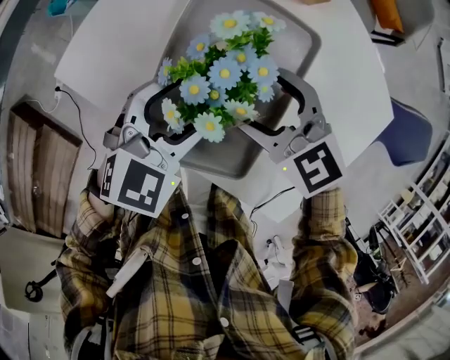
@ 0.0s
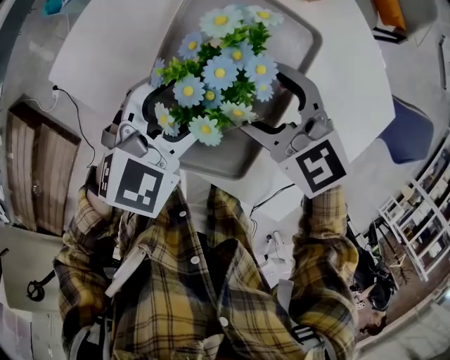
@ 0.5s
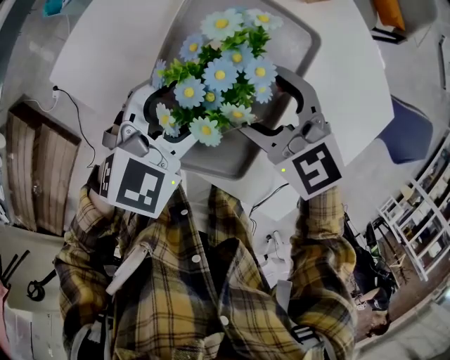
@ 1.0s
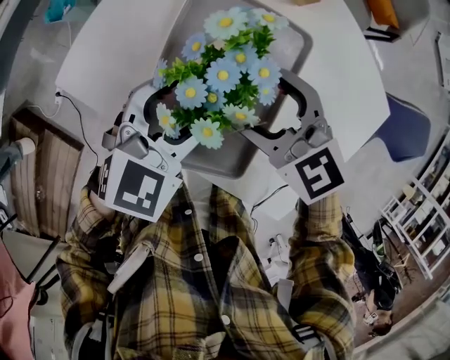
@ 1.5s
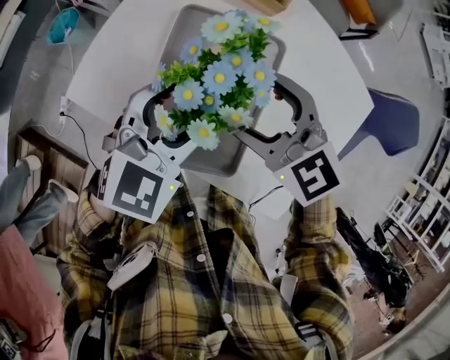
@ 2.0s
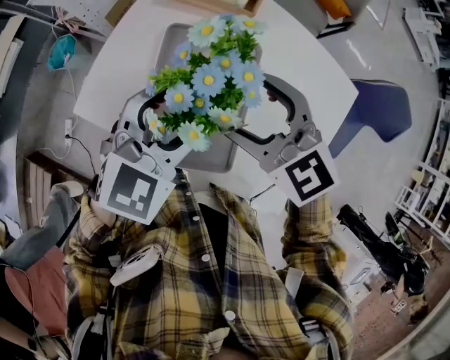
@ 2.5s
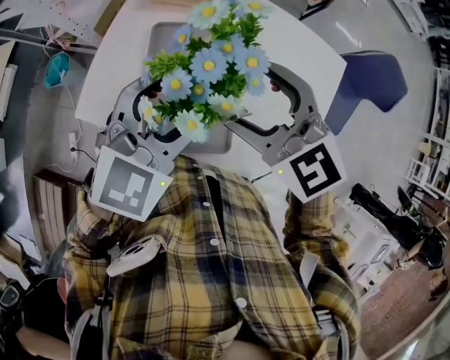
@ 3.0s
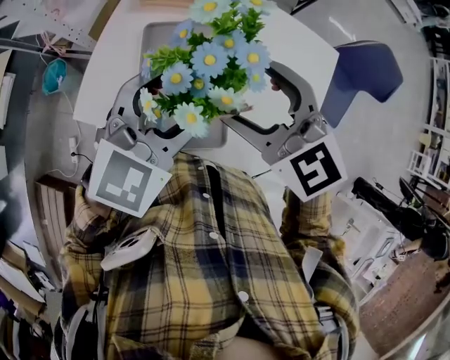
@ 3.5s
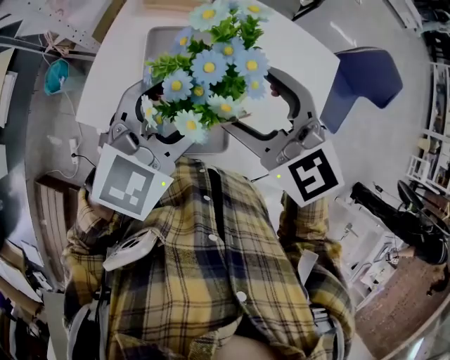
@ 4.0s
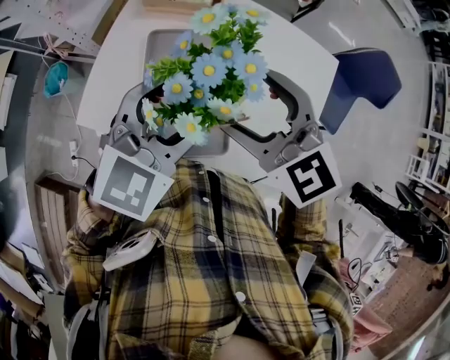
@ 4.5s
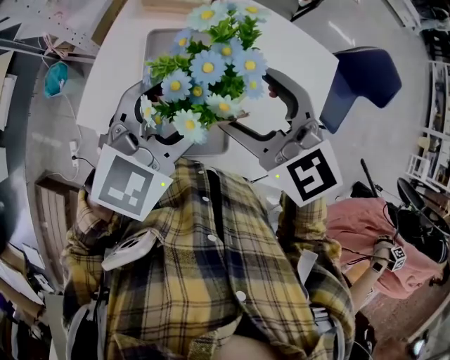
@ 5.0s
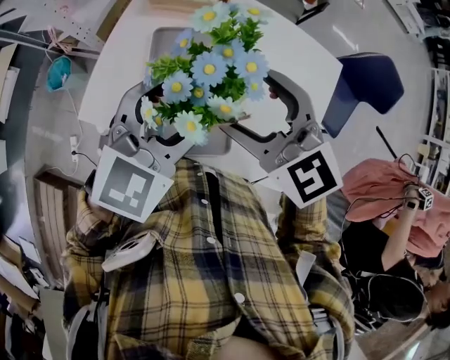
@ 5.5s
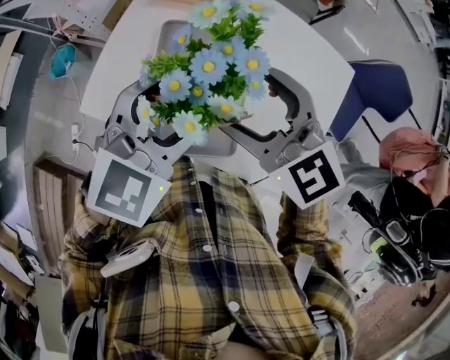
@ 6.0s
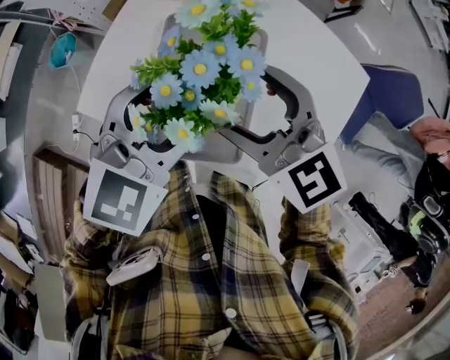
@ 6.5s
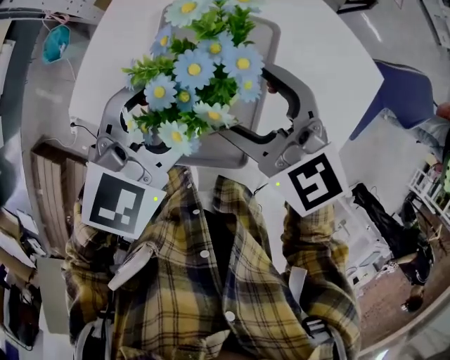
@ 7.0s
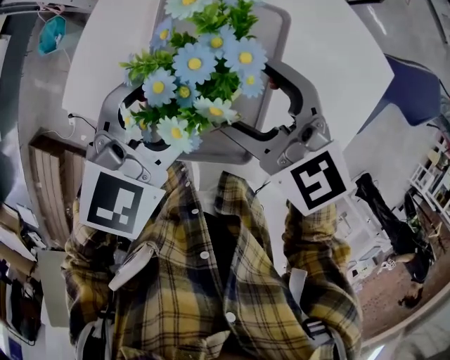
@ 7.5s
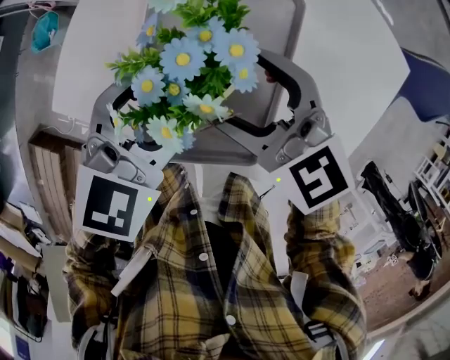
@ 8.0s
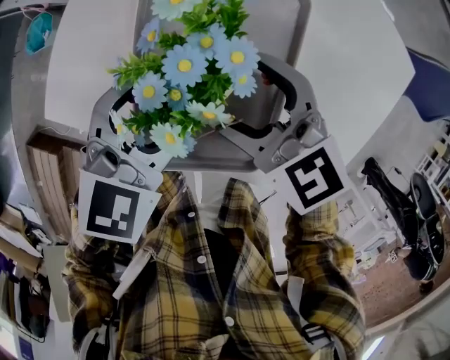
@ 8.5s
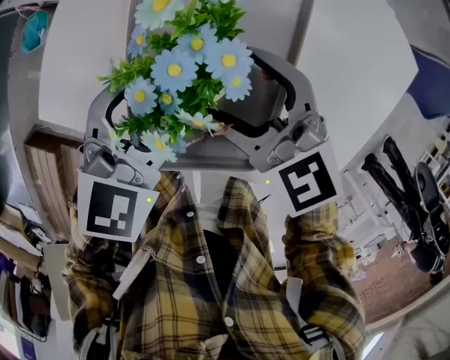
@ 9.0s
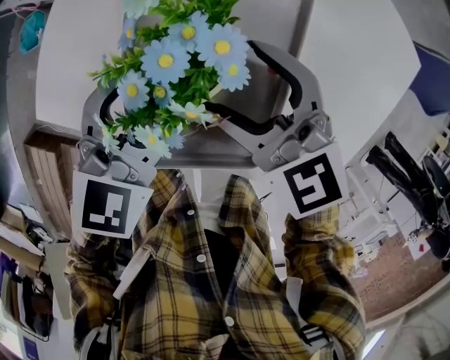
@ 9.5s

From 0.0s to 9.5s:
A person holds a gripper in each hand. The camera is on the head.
From 0.0s to 2.0s: There are only small adjustments of the grippers.
From 2.0s to 4.0s: The grippers stay close to where they were, moving slightly.
From 4.0s to 5.5s: Both grippers stay put.
From 5.5s to 7.5s: There are only small adjustments of the grippers.
From 7.5s to 9.5s: Both grippers stay about where they are.

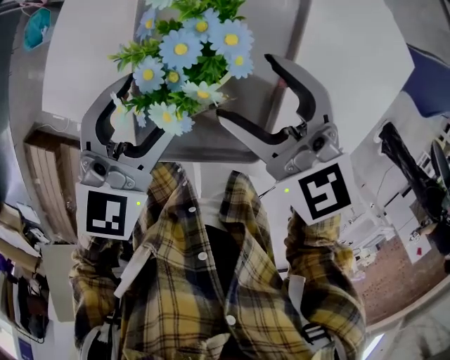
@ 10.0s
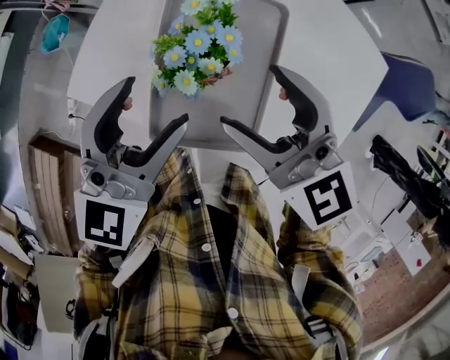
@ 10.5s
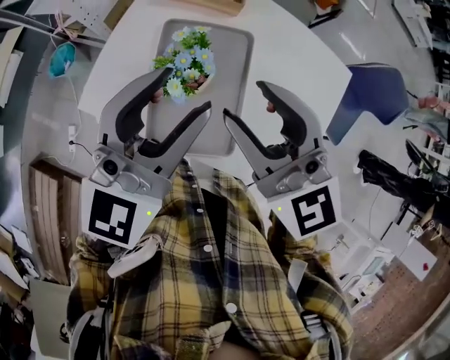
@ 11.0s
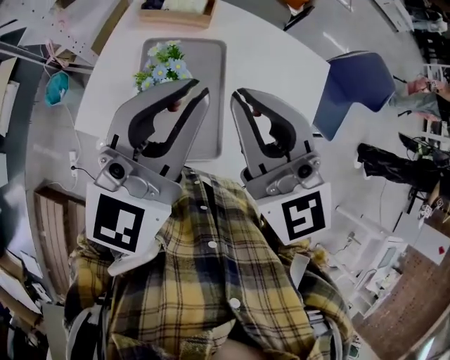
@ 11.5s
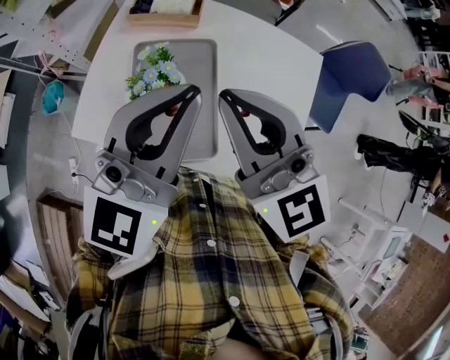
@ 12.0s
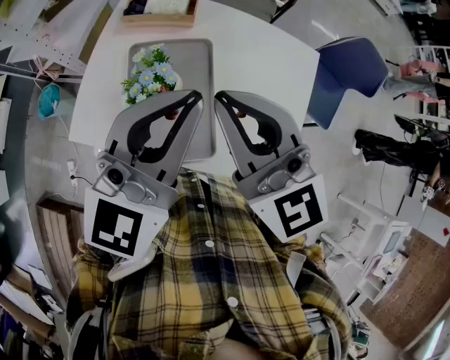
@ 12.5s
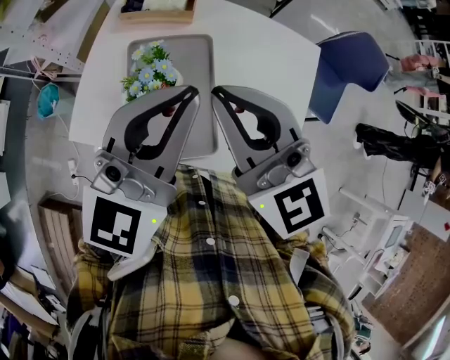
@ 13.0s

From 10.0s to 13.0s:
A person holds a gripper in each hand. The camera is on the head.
From 10.0s to 11.5s: The two grippers go approximately 30 cm upward. The left gripper points its fingers roughly 30 degrees further upward, and closes, while the right gripper tilts its fingers about 30 degrees upward, and closes.
From 11.5s to 13.0s: The grippers stay close to where they were, moving slightly.

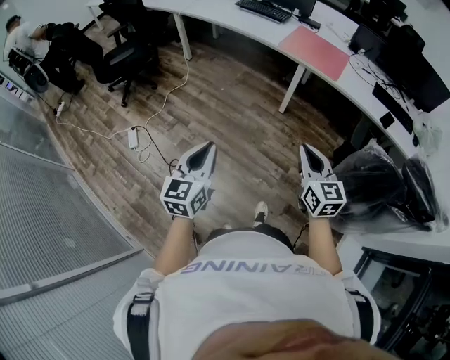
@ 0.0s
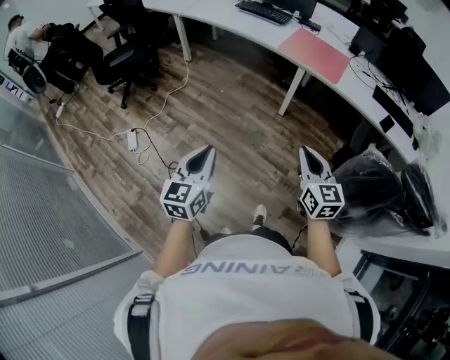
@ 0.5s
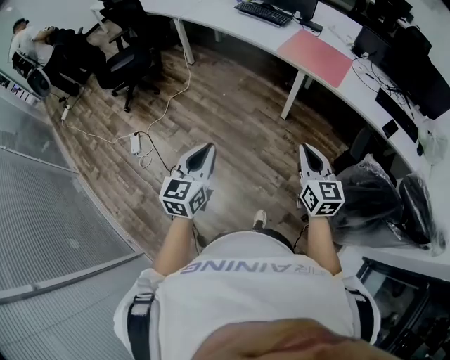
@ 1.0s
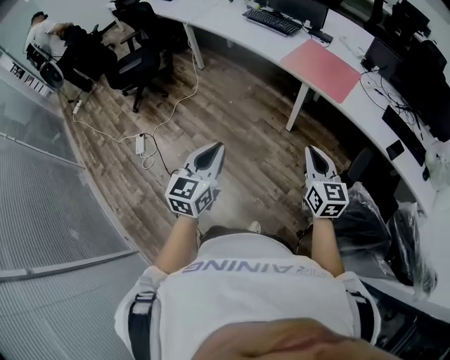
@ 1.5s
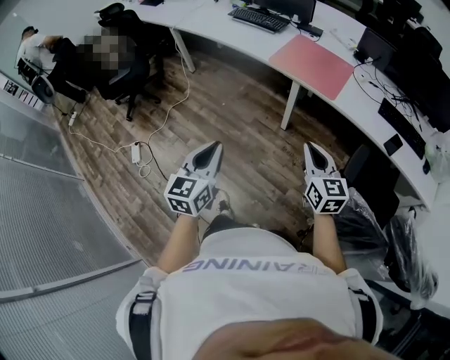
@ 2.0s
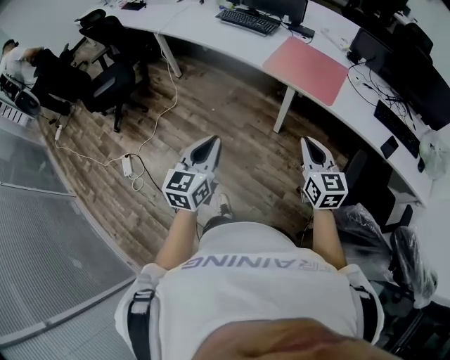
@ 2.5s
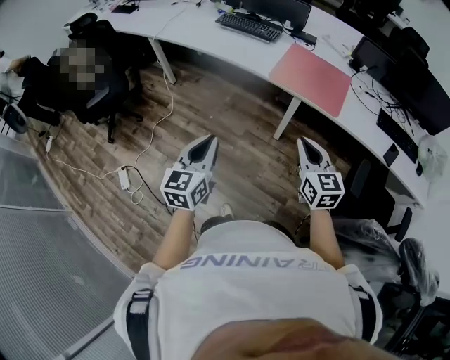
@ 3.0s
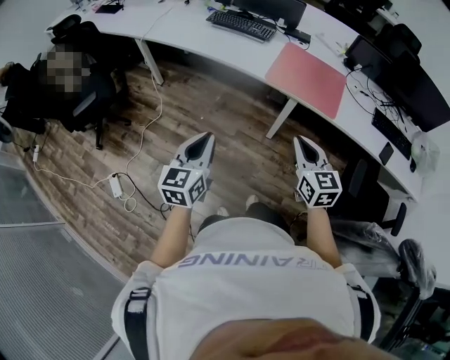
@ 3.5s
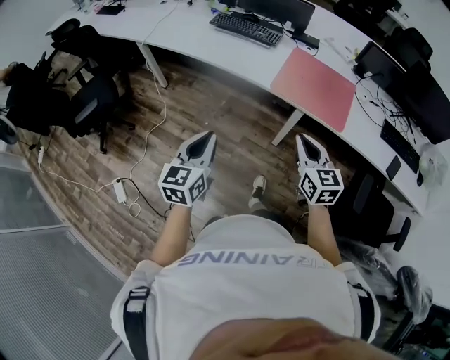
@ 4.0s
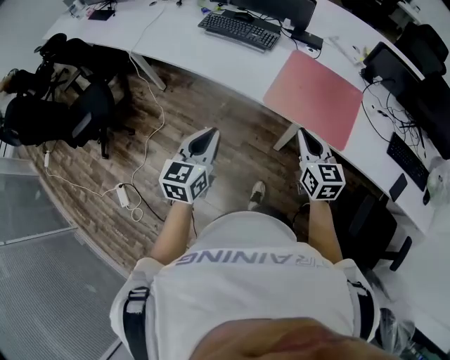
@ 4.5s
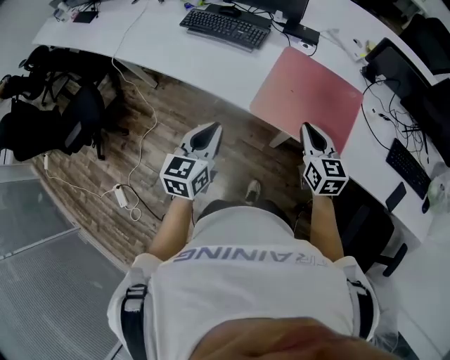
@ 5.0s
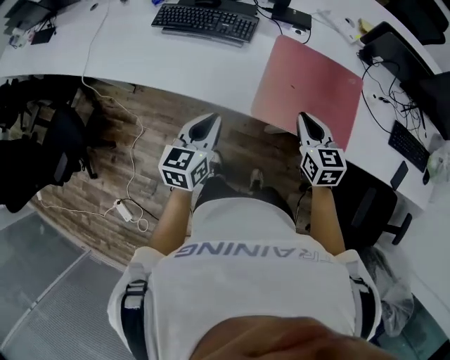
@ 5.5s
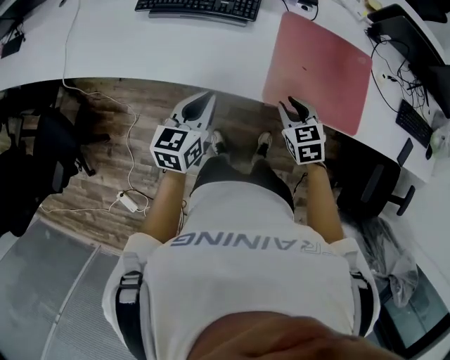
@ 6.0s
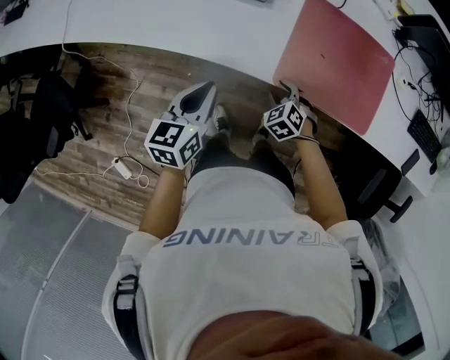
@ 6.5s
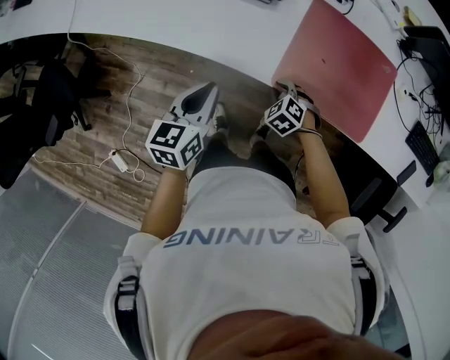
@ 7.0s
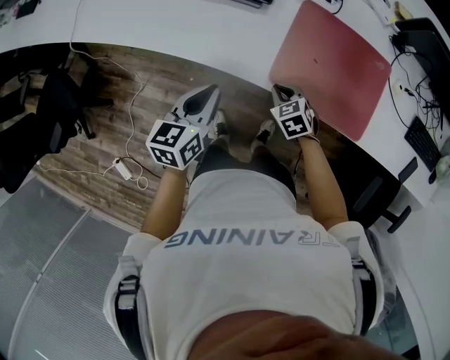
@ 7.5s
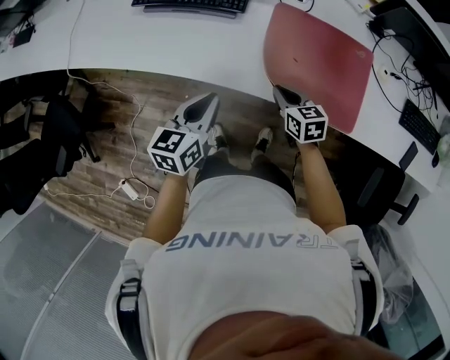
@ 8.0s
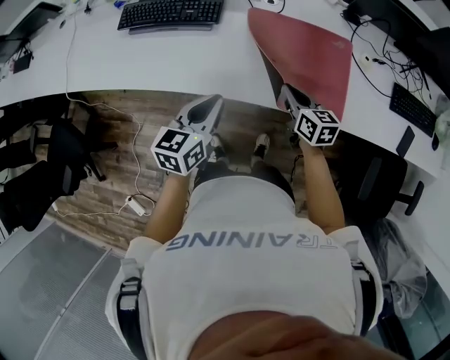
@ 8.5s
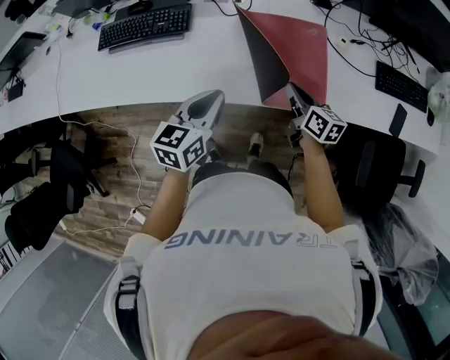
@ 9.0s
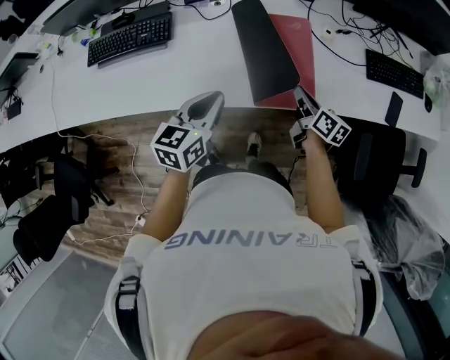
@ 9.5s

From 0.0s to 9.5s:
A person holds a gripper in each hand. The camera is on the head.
From 0.0s to 2.0s: The grippers both shift forward and to the right by approximately 25 cm.
From 2.0s to 4.0s: Both grippers travel together forward and to the left, about 35 cm.
From 4.0s to 5.5s: The two grippers go some 35 cm forward.
From 5.5s to 7.5s: The right gripper heads downward and to the left, covering about 20 cm, turns by roughly 40 degrees, and opens and closes again.
From 7.5s to 9.5s: The right gripper shifts by approximately 35 cm, and twists about 70 degrees clockwise, seen from behind; the left gripper moves some 25 cm, and swivels approximately 30 degrees.

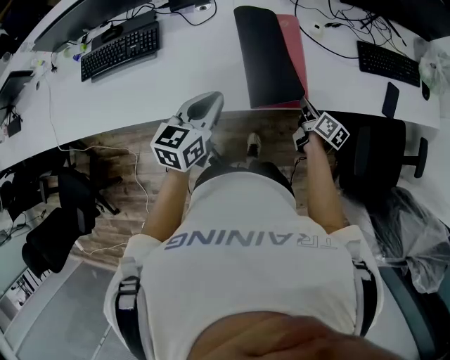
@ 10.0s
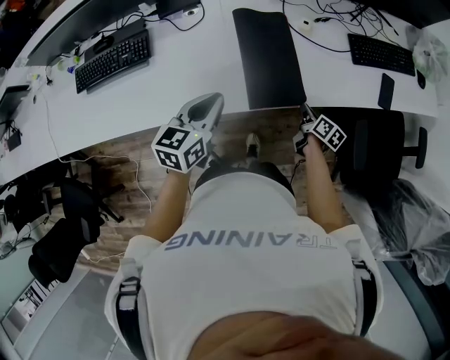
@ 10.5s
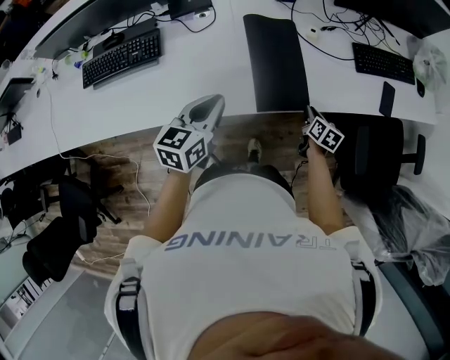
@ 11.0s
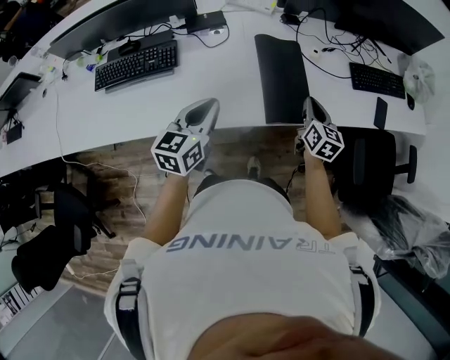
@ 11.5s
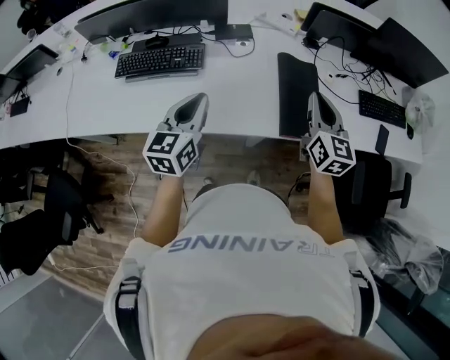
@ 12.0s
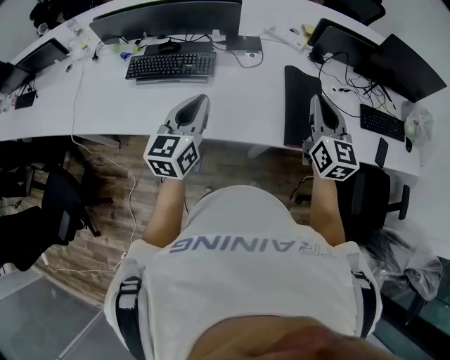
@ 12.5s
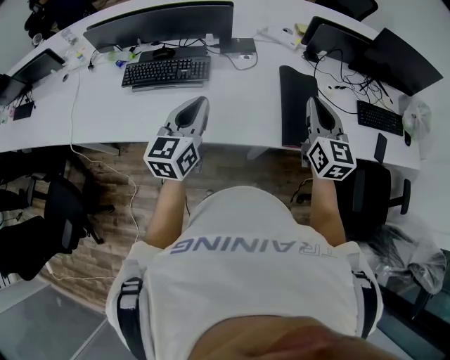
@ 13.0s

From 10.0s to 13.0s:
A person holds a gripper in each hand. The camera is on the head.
From 10.0s to 11.5s: The right gripper heads upward, covering some 15 cm, and changes its angle by approximately 40 degrees, while the left gripper moves to the left and upward, some 10 cm.
From 11.5s to 13.0s: The right gripper is displaced upward and to the left by roughly 25 cm, and turns by roughly 30 degrees. The left gripper heads to the left and upward, covering roughly 15 cm.

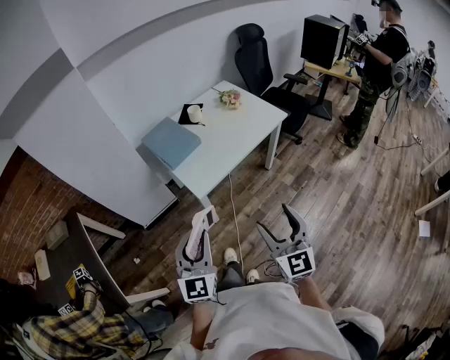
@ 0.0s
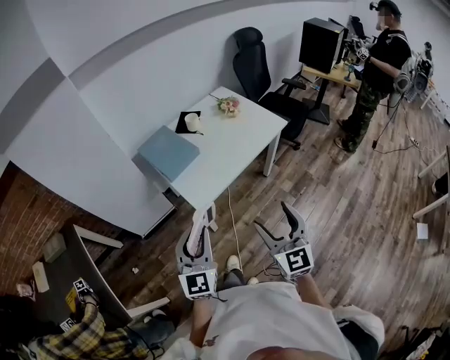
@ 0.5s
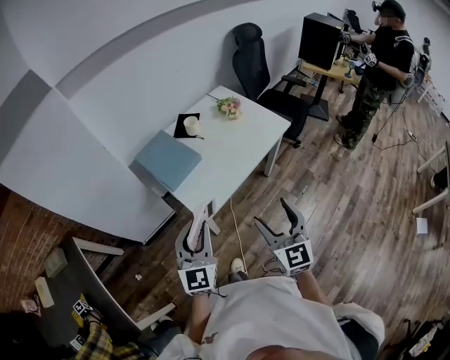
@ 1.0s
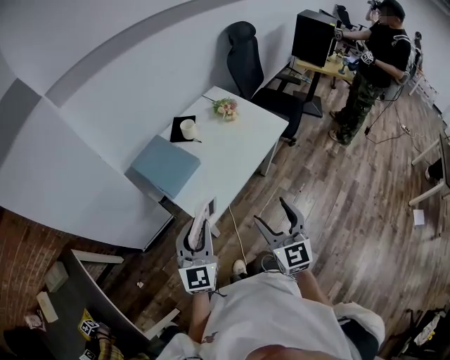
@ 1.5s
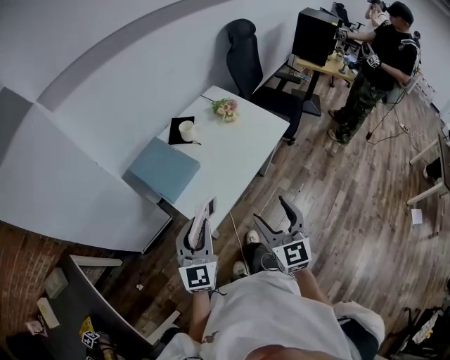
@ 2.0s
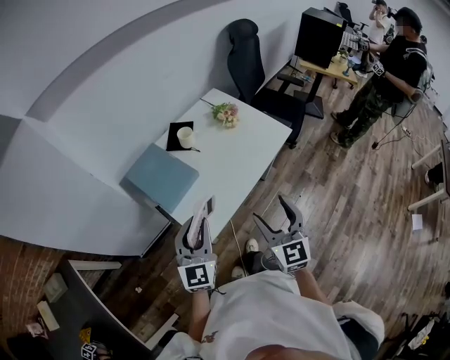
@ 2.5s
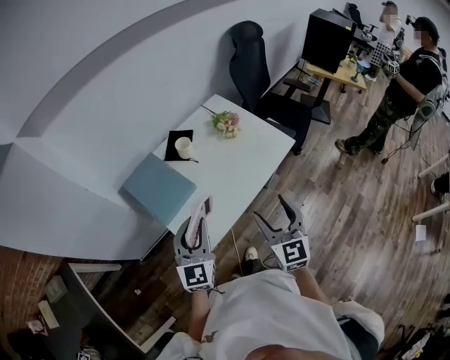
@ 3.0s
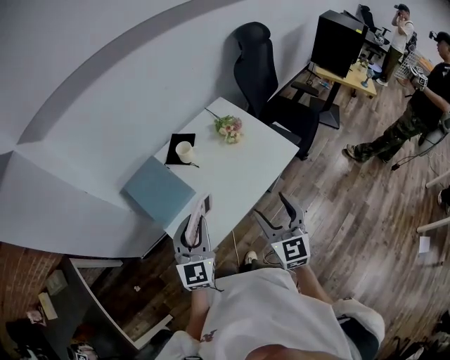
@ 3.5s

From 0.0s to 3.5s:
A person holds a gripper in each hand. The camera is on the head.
From 0.0s to 2.0s: Both grippers move forward, about 25 cm.
From 2.0s to 3.5s: Both grippers move forward and to the right, some 20 cm.
